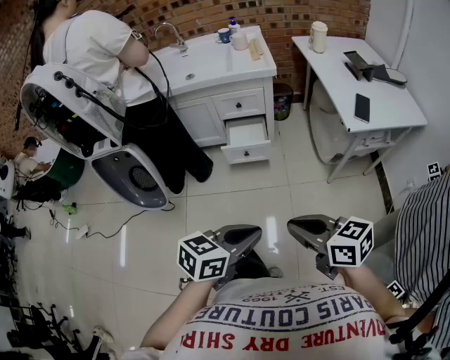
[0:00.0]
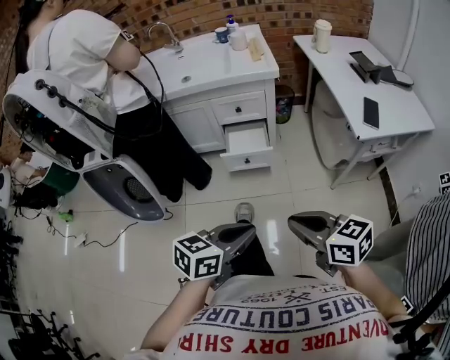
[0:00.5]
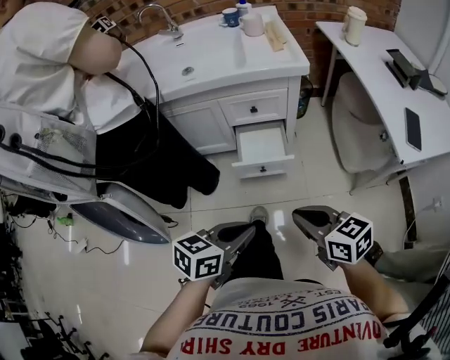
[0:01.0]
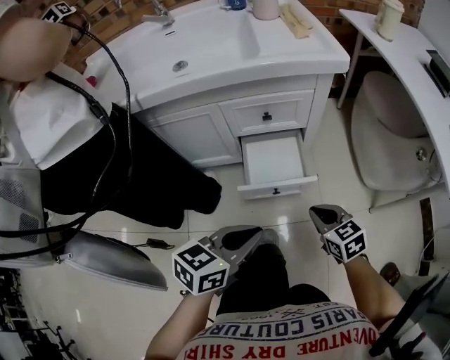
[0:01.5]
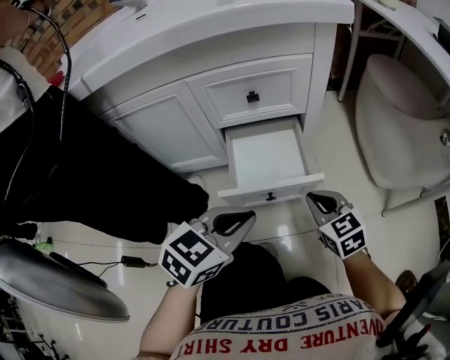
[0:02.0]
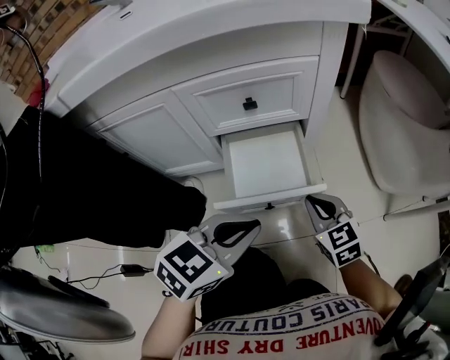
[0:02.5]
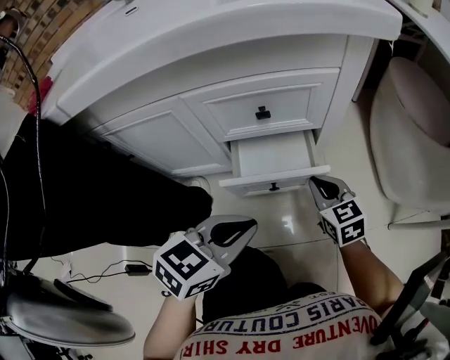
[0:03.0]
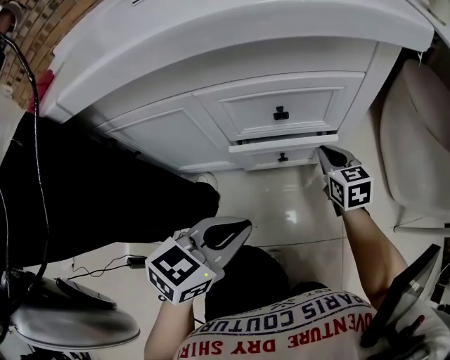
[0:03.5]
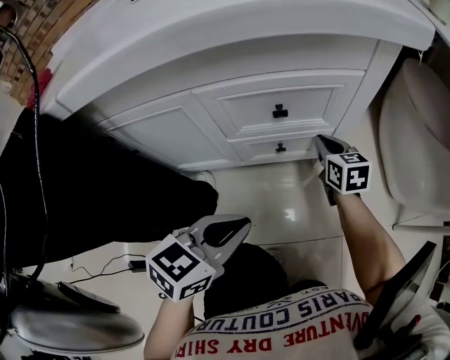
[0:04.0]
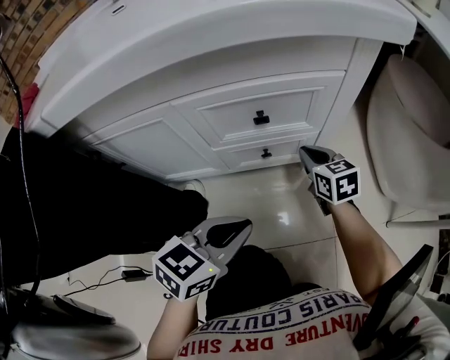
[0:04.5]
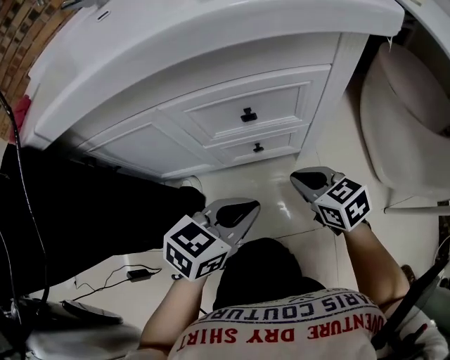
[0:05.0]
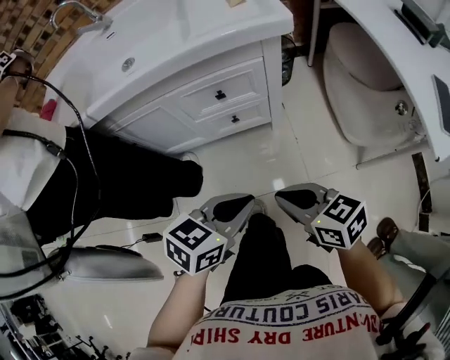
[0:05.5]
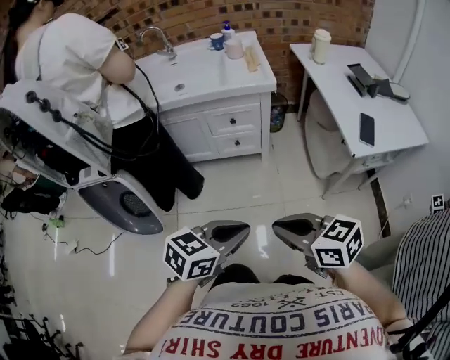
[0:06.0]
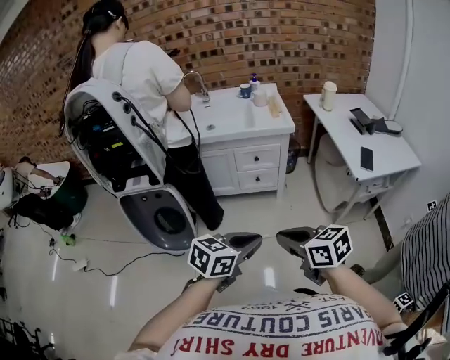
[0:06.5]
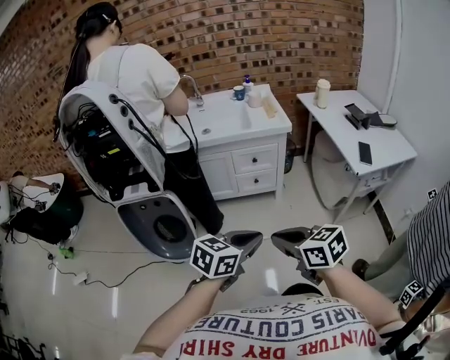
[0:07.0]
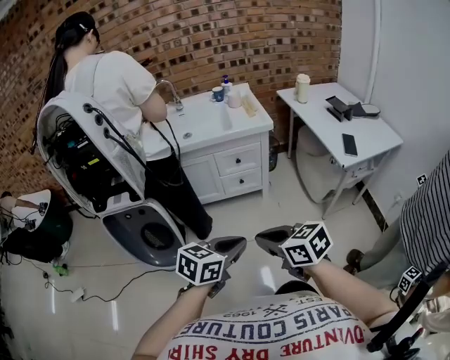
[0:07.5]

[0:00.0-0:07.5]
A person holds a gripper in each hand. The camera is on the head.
0:00.0 to 0:02.0: Both grippers are carried forward, about 50 cm. The grippers both shift downward by some 50 cm. The left gripper turns by some 20 degrees. Meanwhile the right gripper changes its angle by roughly 40 degrees.
0:02.0 to 0:04.0: The right gripper shifts roughly 25 cm forward. The left gripper goes some 10 cm forward and to the left.
0:04.0 to 0:05.5: The right gripper shifts approximately 40 cm backward and upward, and swivels roughly 30 degrees, while the left gripper travels upward, to the right and backward by approximately 20 cm.
0:05.5 to 0:07.5: The two grippers go about 40 cm backward and upward.

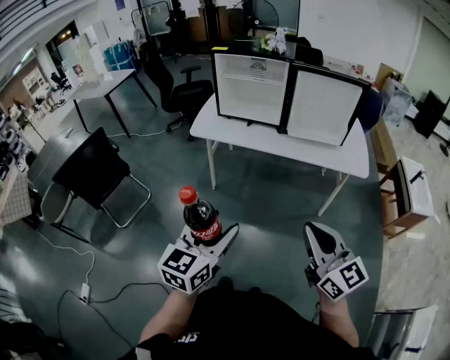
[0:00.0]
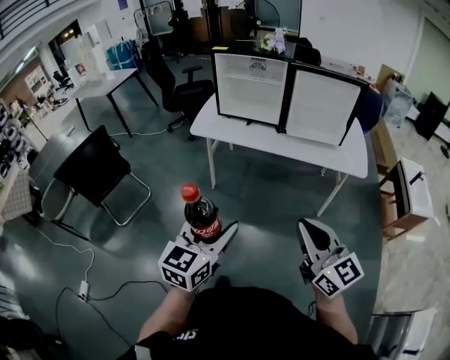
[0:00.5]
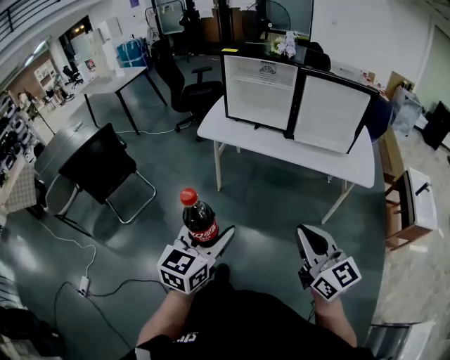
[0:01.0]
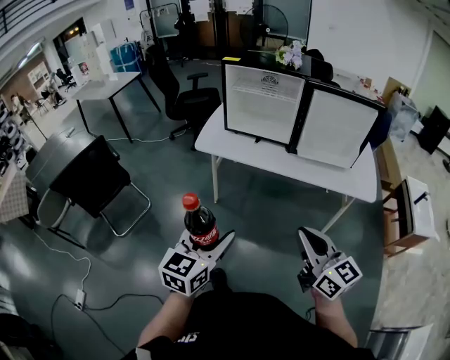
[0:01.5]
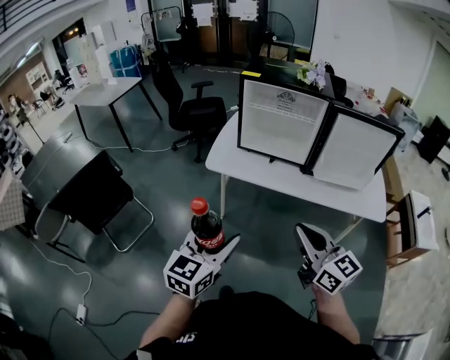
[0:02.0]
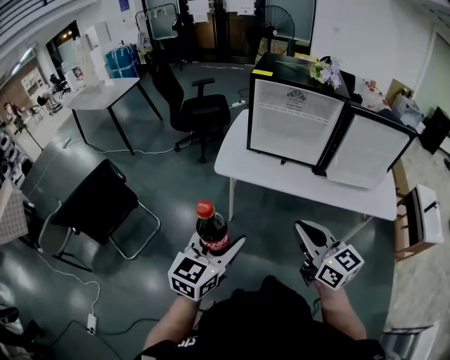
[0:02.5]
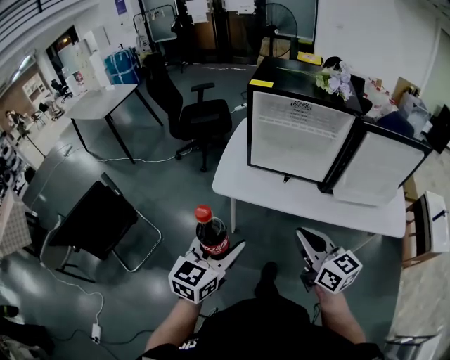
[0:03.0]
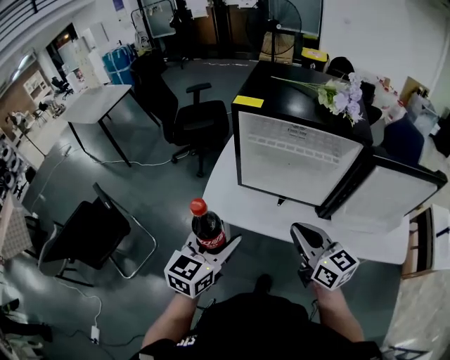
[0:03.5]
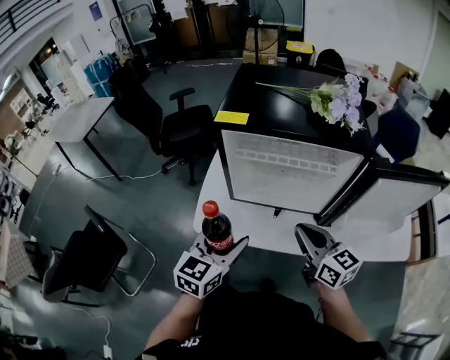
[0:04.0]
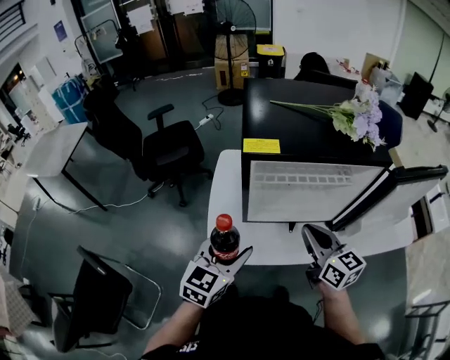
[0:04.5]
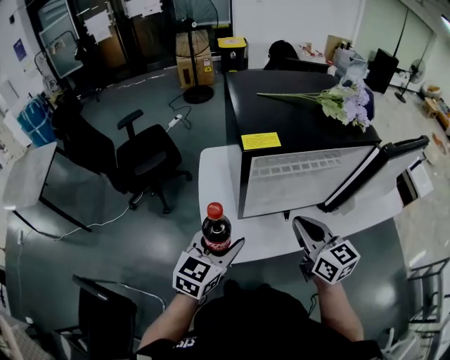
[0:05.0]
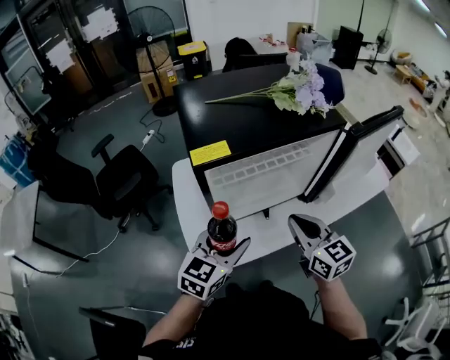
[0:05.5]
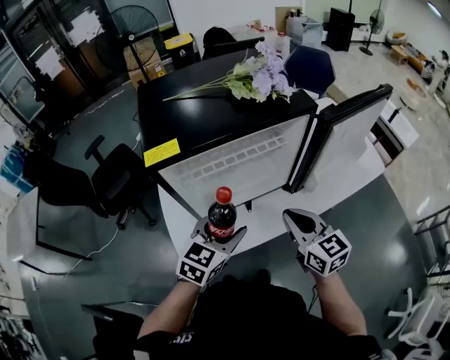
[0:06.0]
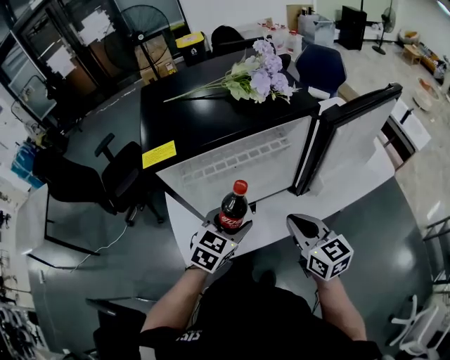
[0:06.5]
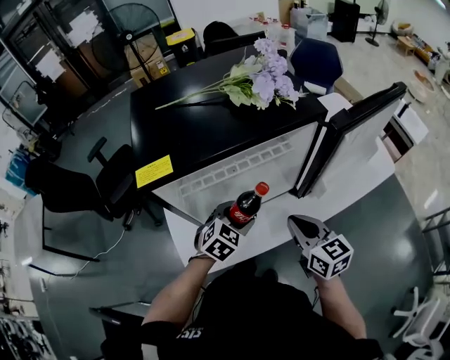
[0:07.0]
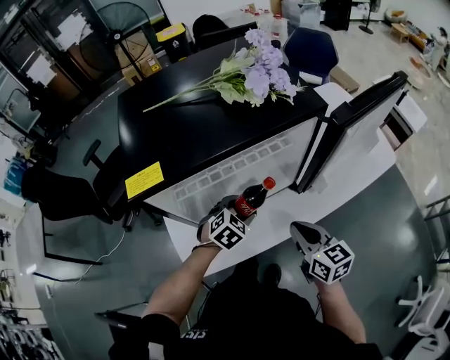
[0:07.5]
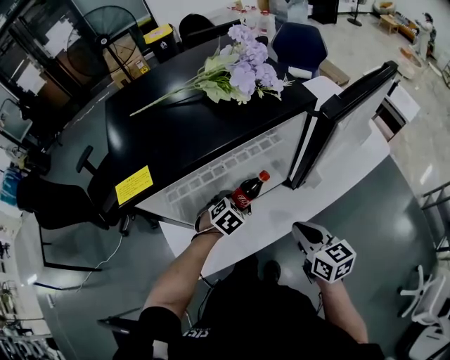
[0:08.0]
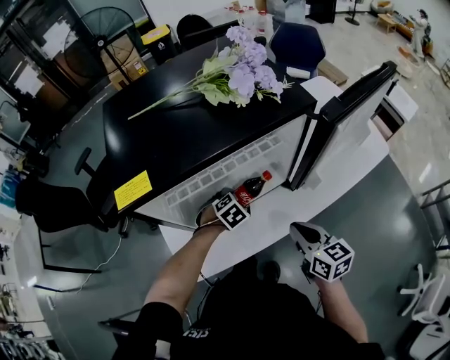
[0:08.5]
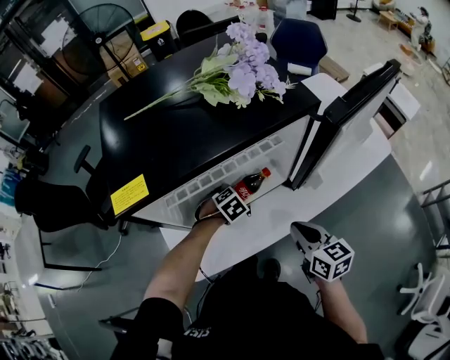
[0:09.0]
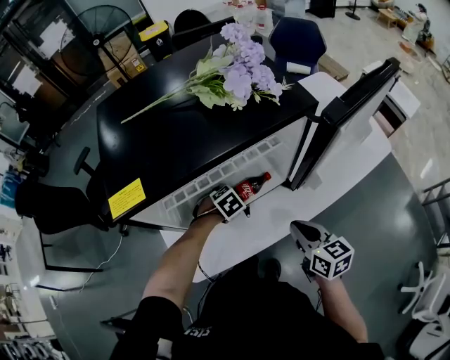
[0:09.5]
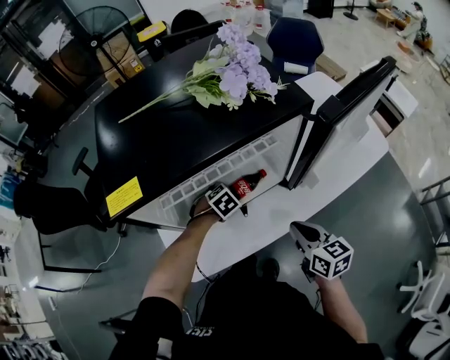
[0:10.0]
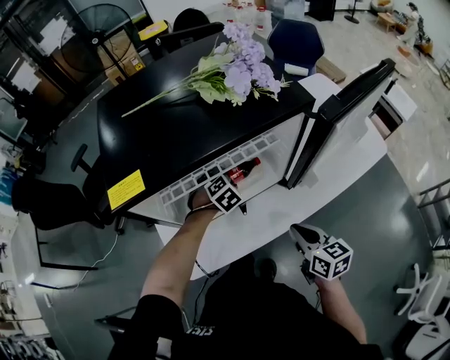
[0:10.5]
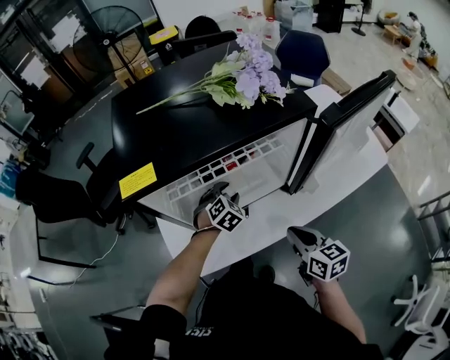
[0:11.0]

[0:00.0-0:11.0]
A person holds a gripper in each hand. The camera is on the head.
0:00.0 to 0:02.0: Both grippers travel together forward and to the left, roughly 25 cm.
0:02.0 to 0:03.5: Both grippers travel together forward, roughly 35 cm.
0:03.5 to 0:05.5: The left gripper shifts by some 20 cm, and rotates approximately 40 degrees; the right gripper ends up about 10 cm from where it was, and rotates about 40 degrees.
0:05.5 to 0:07.5: The right gripper travels downward and to the right by roughly 15 cm; the left gripper travels downward, forward and to the right by some 25 cm, and tips its fingers downward by some 30 degrees.
0:07.5 to 0:09.0: The left gripper heads downward, covering some 10 cm, and rotates about 20 degrees.
0:09.0 to 0:11.0: The left gripper moves upward, about 5 cm, and changes its angle by about 30 degrees.

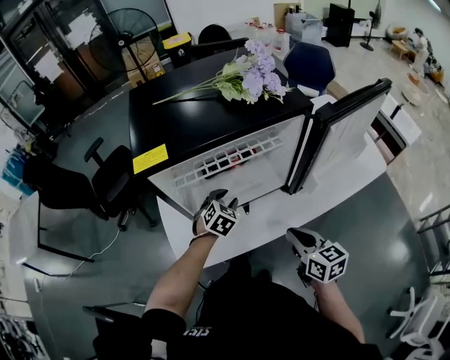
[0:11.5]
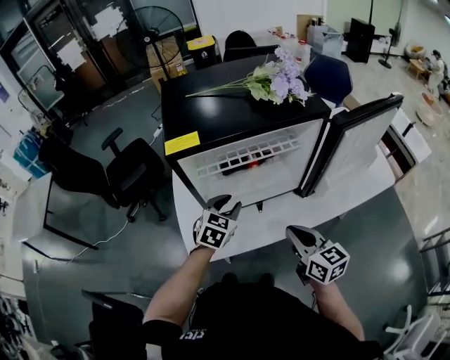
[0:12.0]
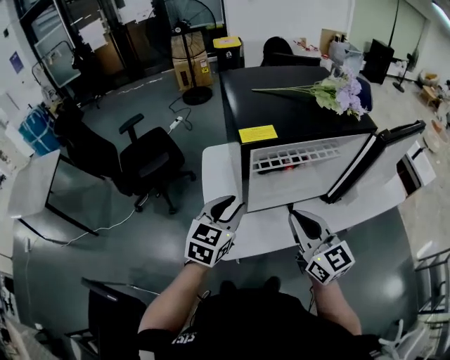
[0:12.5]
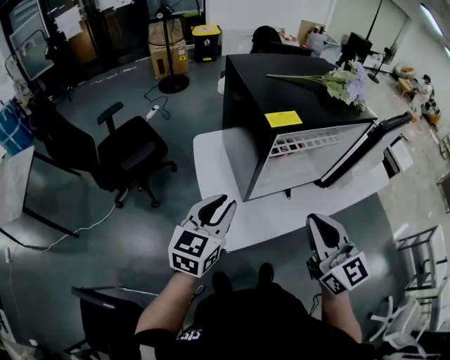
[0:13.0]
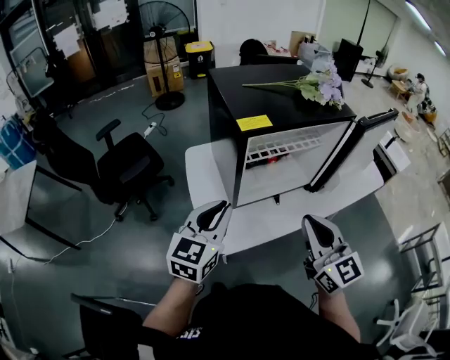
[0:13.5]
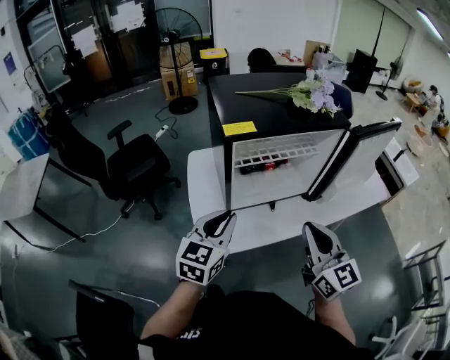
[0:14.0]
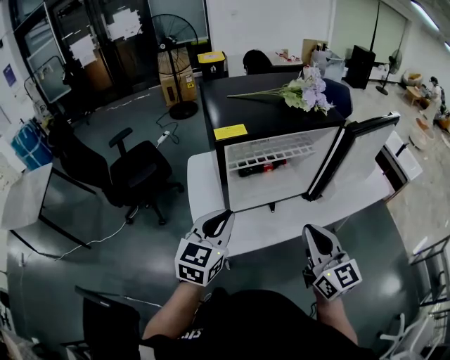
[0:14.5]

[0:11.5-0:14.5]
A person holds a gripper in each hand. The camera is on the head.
0:11.5 to 0:13.0: The left gripper goes approximately 35 cm to the left, upward and backward, and points its fingers approximately 30 degrees further upward; the right gripper moves to the left and upward, about 30 cm, and rotates roughly 30 degrees.
0:13.0 to 0:14.5: The two grippers go approximately 15 cm to the right.

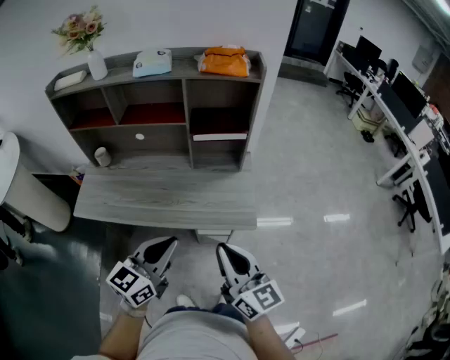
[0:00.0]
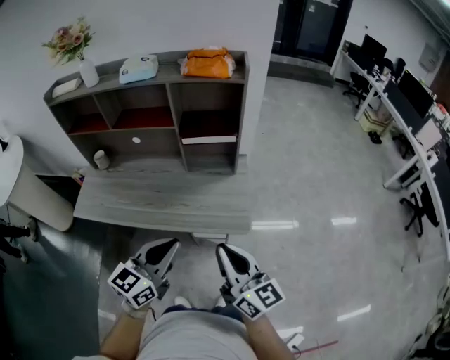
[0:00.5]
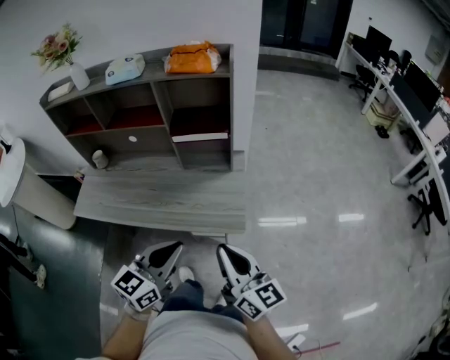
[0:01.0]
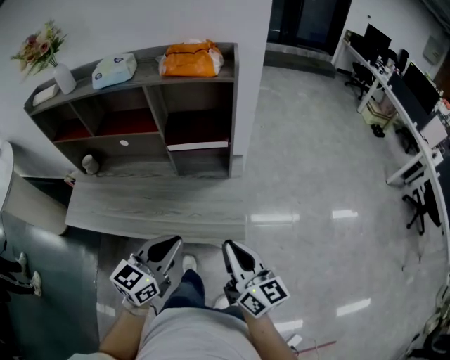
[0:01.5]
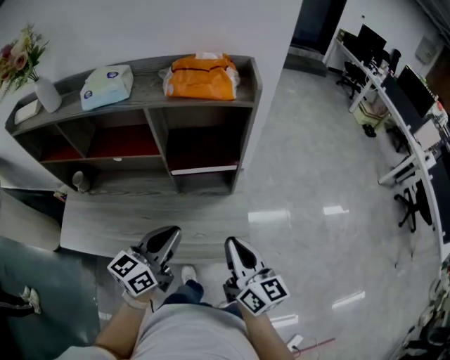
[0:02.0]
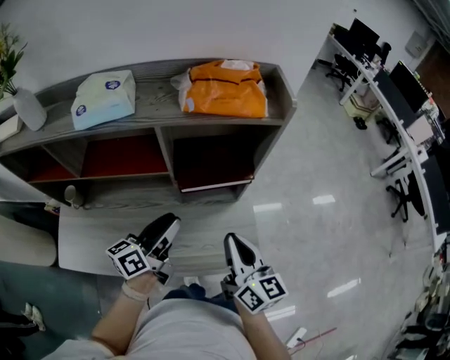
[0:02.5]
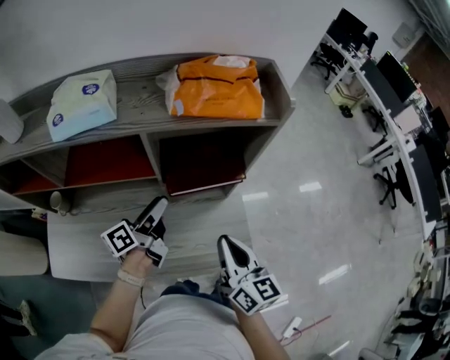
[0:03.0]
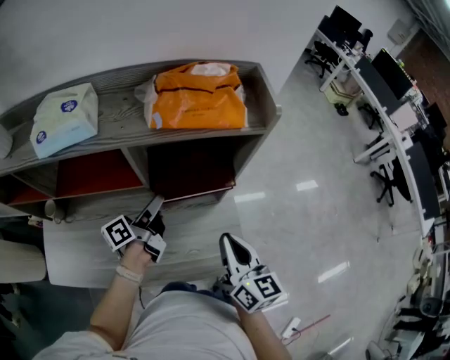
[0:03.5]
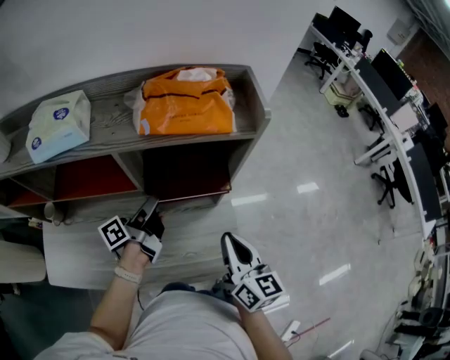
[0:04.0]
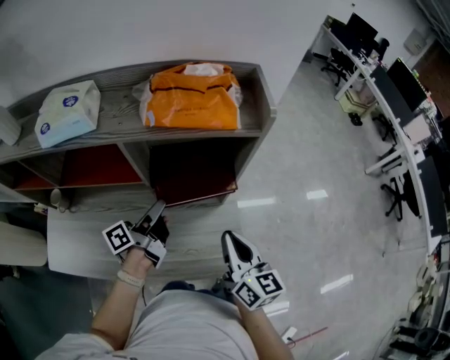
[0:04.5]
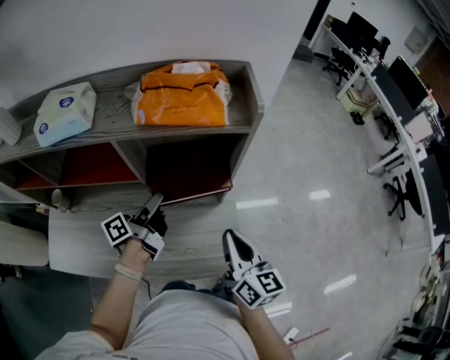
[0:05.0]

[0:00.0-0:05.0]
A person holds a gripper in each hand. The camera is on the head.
0:00.0 to 0:02.5: Both grippers travel together forward, approximately 30 cm. The left gripper rotates approximately 30 degrees, and opens its fingers.
0:02.5 to 0:05.0: The right gripper is displaced to the right and forward by approximately 10 cm; the left gripper goes some 10 cm forward, swivels roughly 30 degrees, and opens its fingers.
